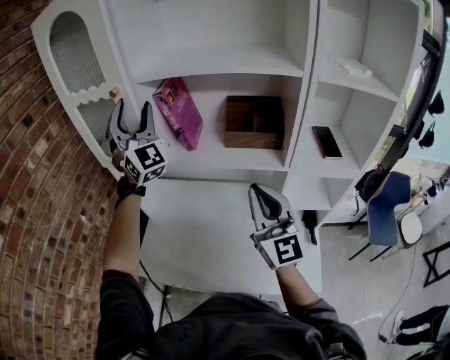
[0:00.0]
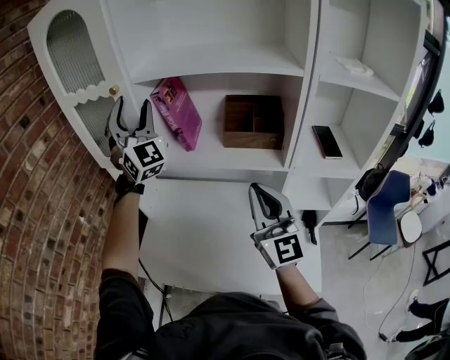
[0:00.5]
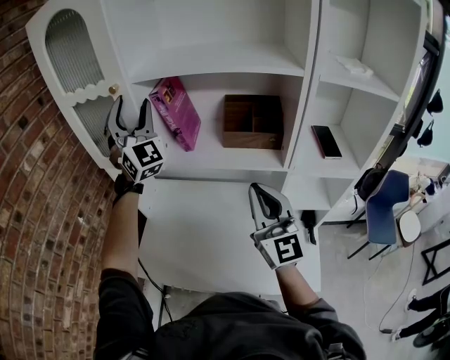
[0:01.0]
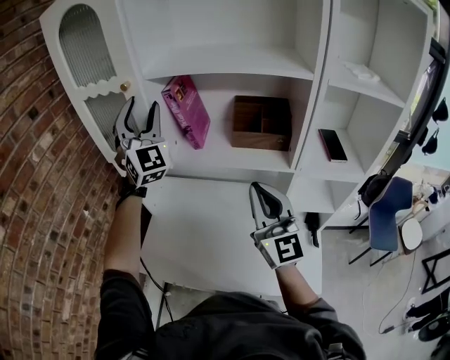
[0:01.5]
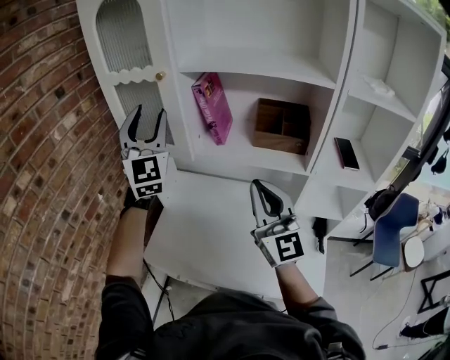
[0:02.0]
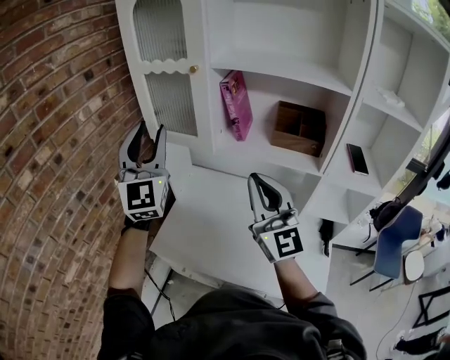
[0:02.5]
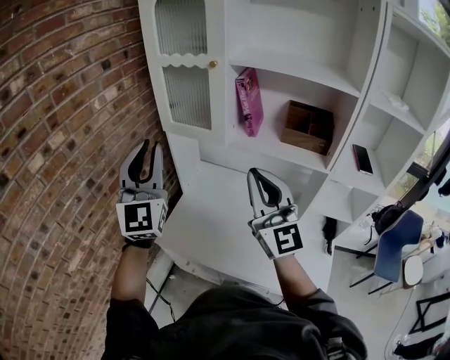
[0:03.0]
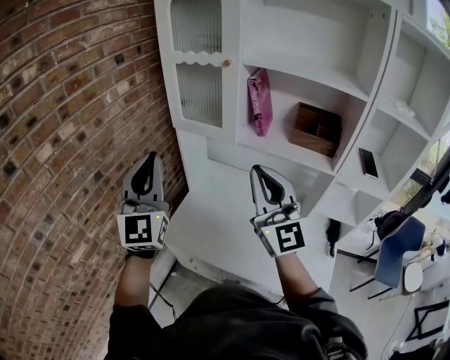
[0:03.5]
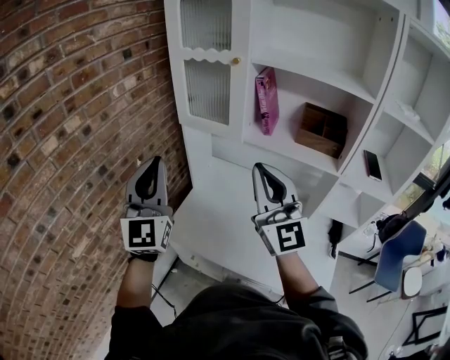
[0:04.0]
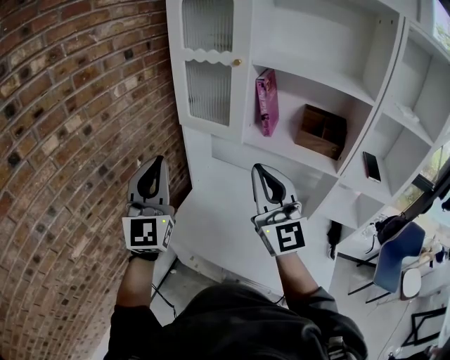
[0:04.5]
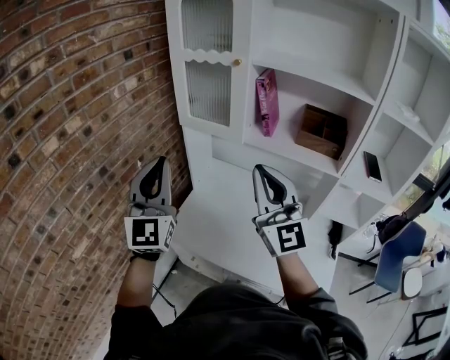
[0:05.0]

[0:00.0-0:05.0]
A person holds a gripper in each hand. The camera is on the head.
0:00.0 to 0:02.5: The left gripper travels backward and to the left by about 20 cm, and changes its angle by roughly 20 degrees; the right gripper is displaced to the left by approximately 15 cm.
0:02.5 to 0:05.0: The left gripper heads backward, to the left and downward, covering about 15 cm, and closes. Meanwhile the right gripper travels to the left by roughly 10 cm.

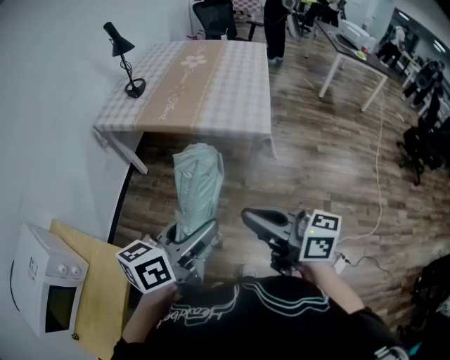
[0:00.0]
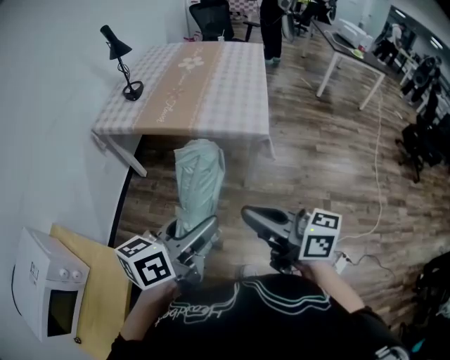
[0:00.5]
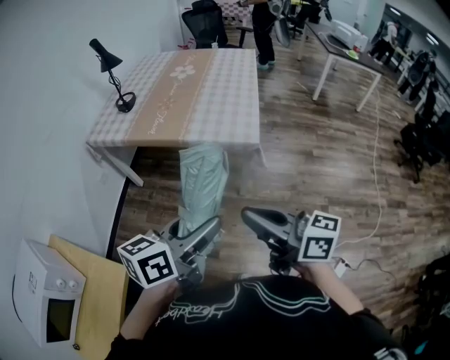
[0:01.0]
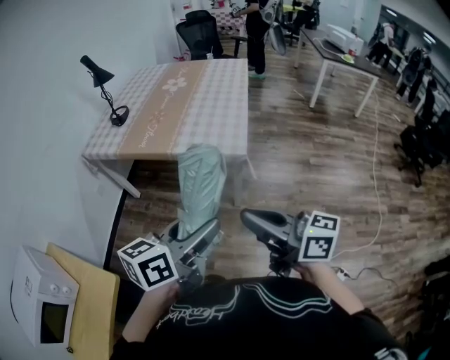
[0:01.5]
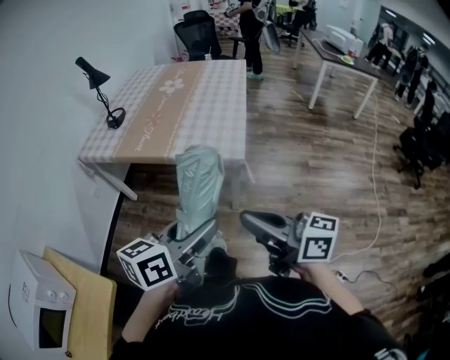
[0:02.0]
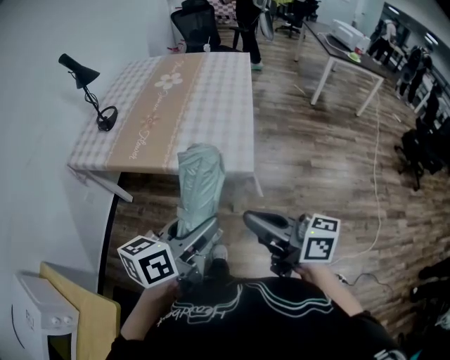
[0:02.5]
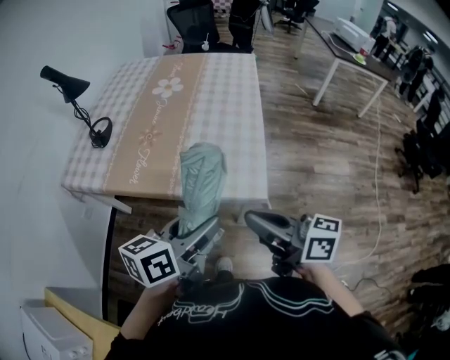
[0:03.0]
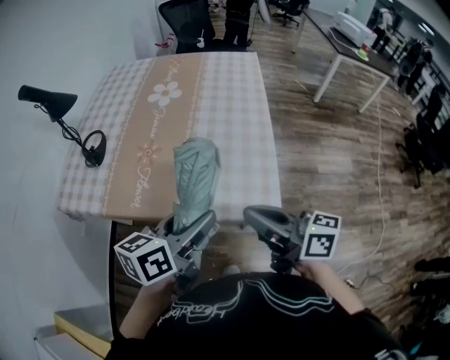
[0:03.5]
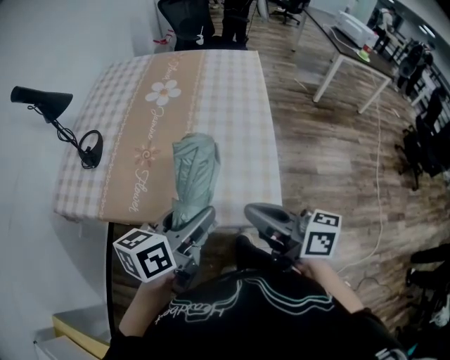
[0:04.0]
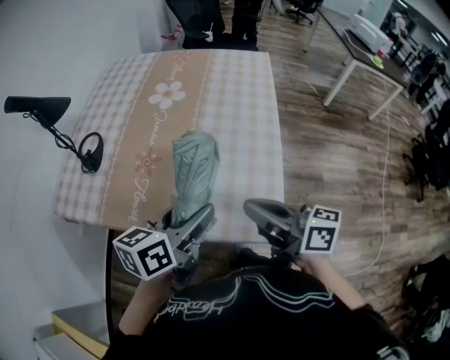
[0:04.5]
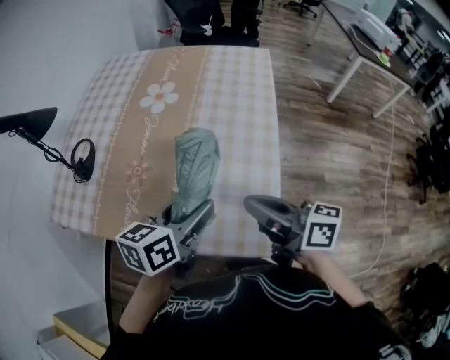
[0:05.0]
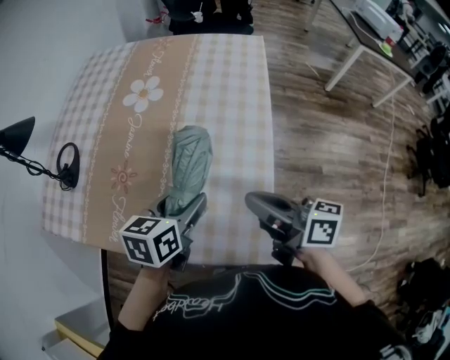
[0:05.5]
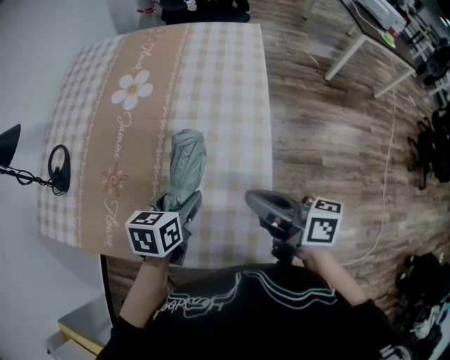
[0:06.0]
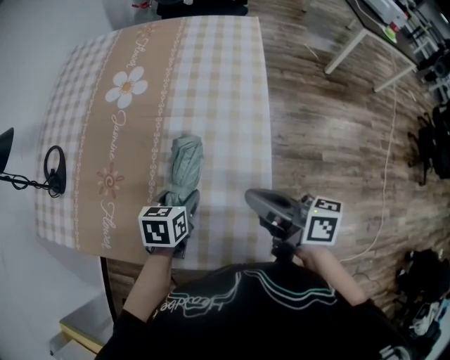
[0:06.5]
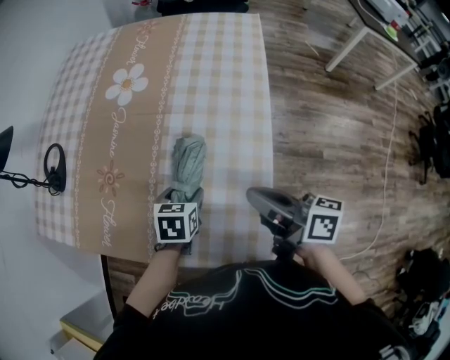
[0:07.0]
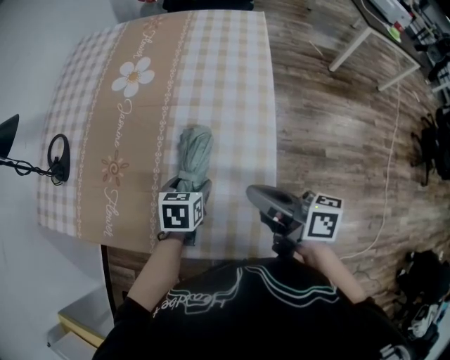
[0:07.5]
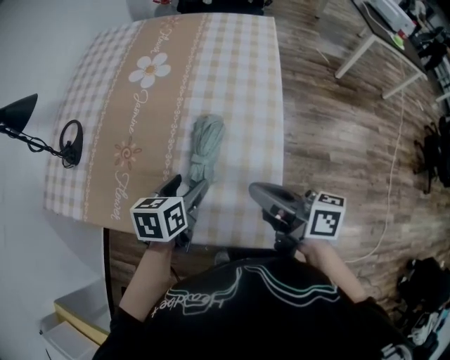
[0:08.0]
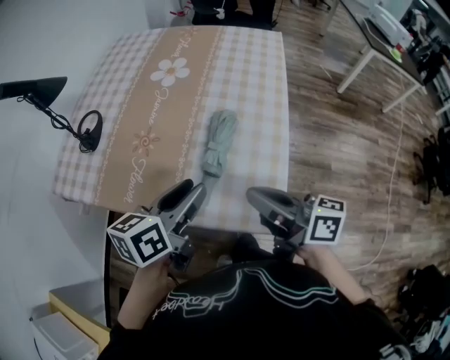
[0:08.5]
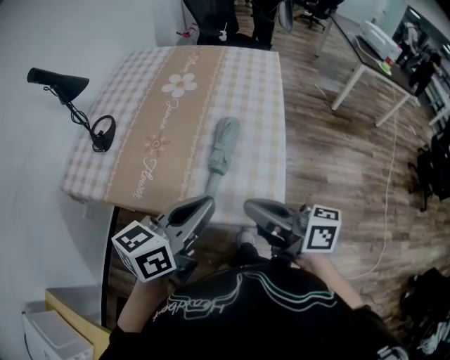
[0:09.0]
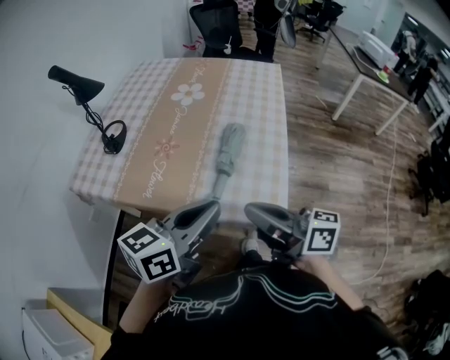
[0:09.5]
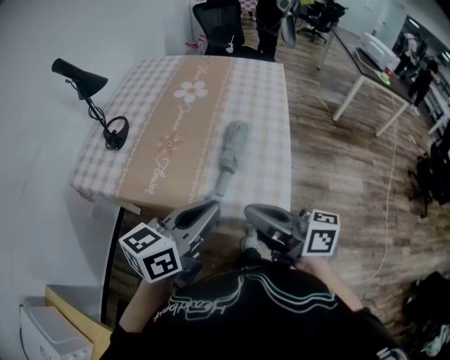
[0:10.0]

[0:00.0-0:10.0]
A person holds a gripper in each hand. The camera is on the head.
0:00.0 to 0:02.0: The two grippers go roughly 15 cm to the right and forward.
0:02.0 to 0:04.0: Both grippers move forward, roughly 40 cm.
0:04.0 to 0:06.0: The right gripper goes some 25 cm forward, to the right and downward. The left gripper goes about 25 cm forward and downward, and rotates about 30 degrees.
0:06.0 to 0:08.0: The left gripper moves some 10 cm downward and comes back; the right gripper changes place by approximately 5 cm.
0:08.0 to 0:10.0: The left gripper travels backward and upward by about 30 cm, angles its fingers upward, by roughly 40 degrees, and closes its fingers. The right gripper moves backward, to the left and upward, some 25 cm.

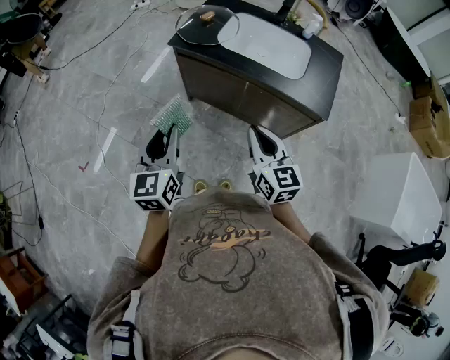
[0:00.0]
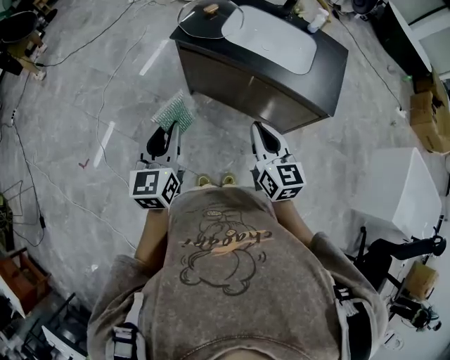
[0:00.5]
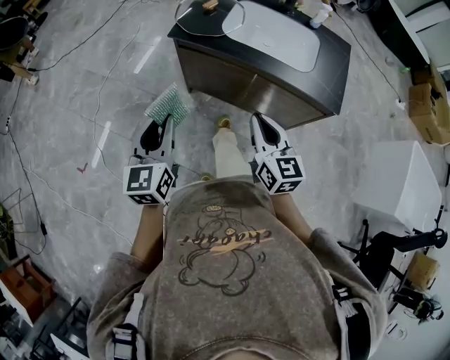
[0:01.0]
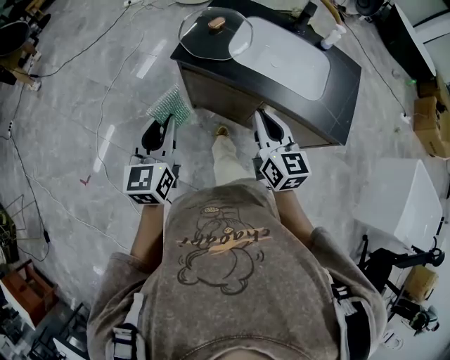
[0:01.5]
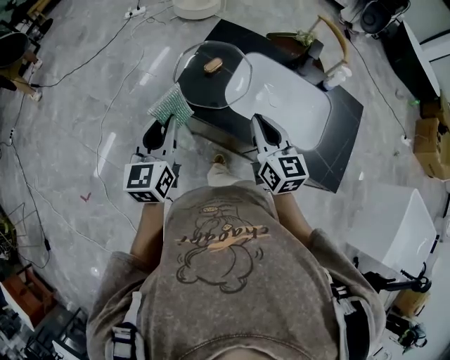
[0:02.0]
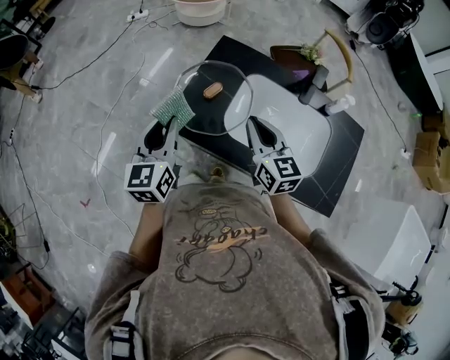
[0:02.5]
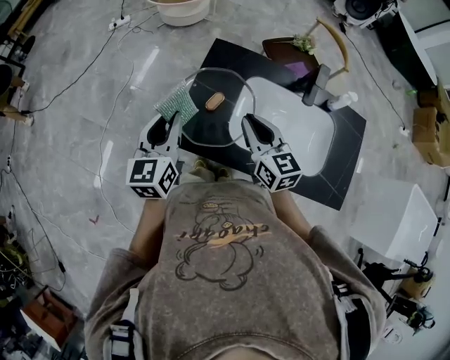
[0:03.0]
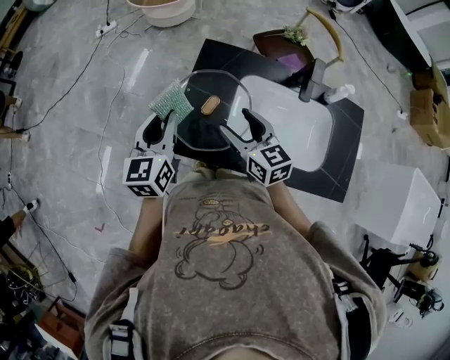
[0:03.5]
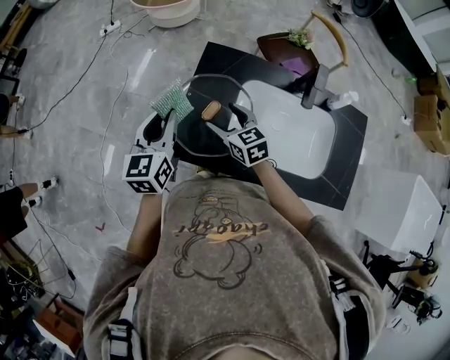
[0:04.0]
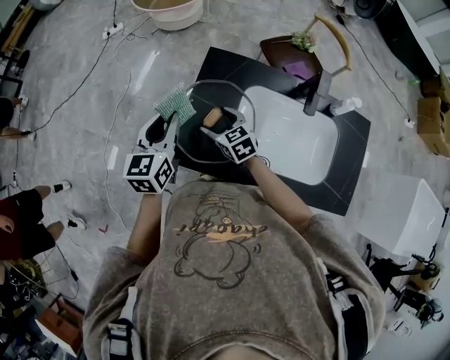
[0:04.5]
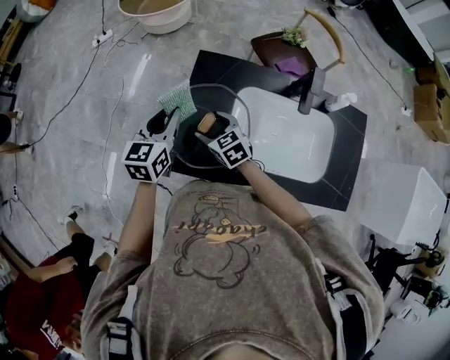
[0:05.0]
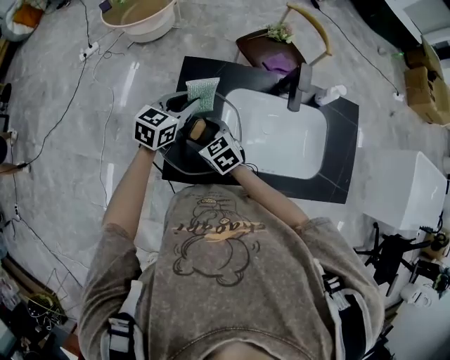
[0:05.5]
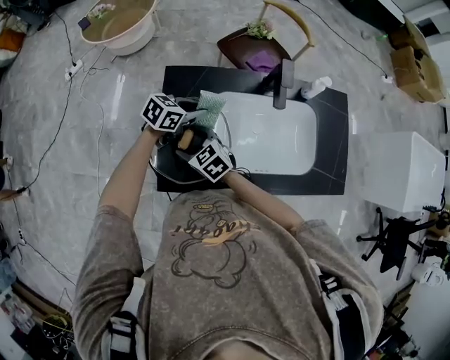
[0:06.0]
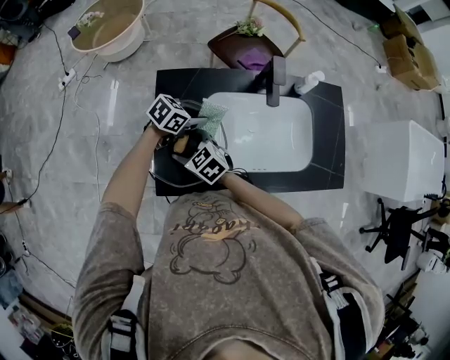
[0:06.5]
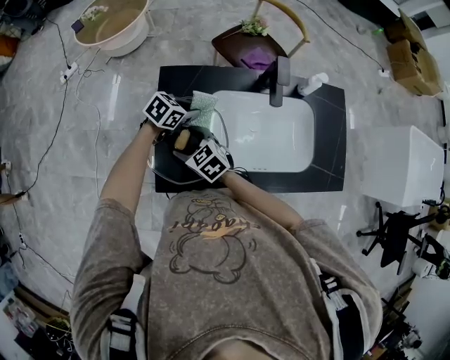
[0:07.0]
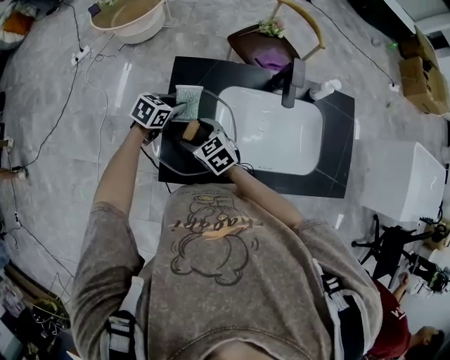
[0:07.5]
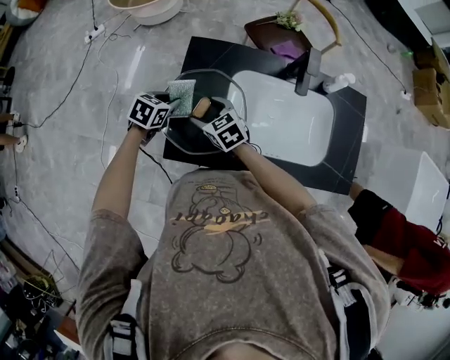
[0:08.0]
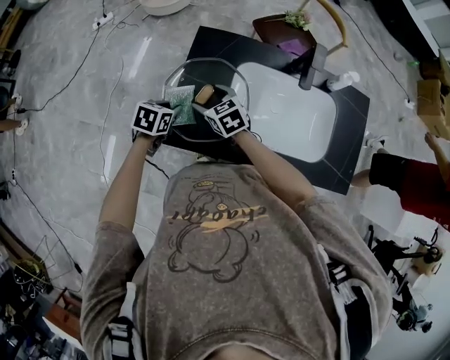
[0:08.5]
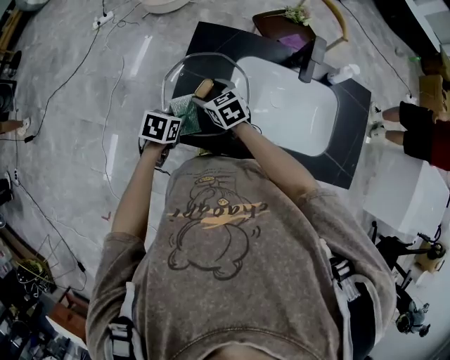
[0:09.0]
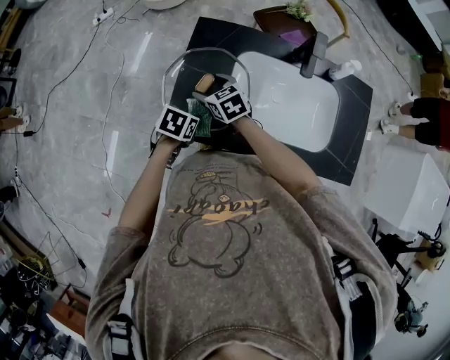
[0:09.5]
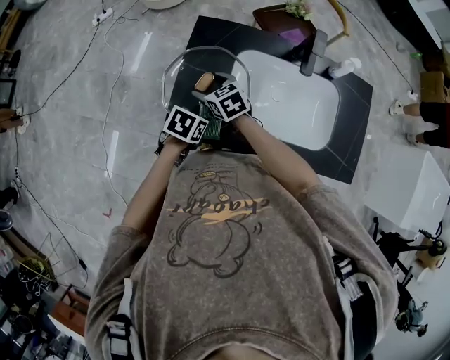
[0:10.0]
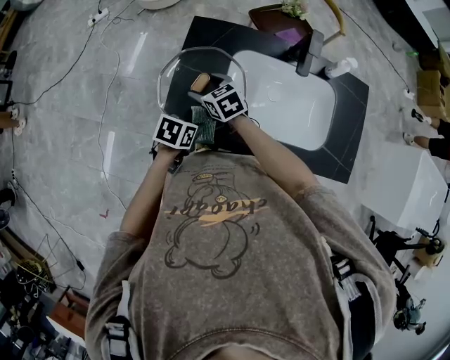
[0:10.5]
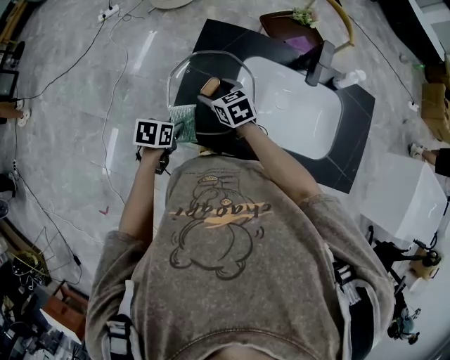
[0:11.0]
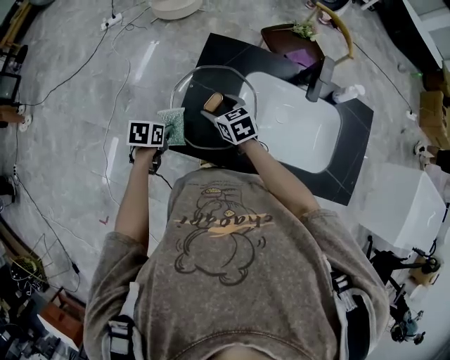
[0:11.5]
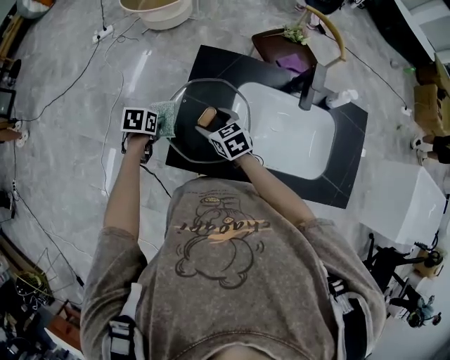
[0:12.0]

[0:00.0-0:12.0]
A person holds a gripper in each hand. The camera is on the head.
0:00.0 to 0:02.0: The two grippers go some 35 cm forward.
0:02.0 to 0:04.0: The left gripper moves forward, approximately 25 cm. The right gripper travels forward and downward by approximately 25 cm, swivels approximately 20 degrees, and opens up.
0:04.0 to 0:06.0: The right gripper is displaced downward by approximately 5 cm; the left gripper moves about 25 cm, and changes its angle by roughly 70 degrees.
0:06.0 to 0:08.0: The left gripper changes place by about 15 cm, and rotates roughly 30 degrees.
0:08.0 to 0:10.0: The left gripper travels backward and to the right by some 15 cm.
0:10.0 to 0:12.0: The left gripper travels to the left and forward by approximately 20 cm, and rotates approximately 20 degrees.
